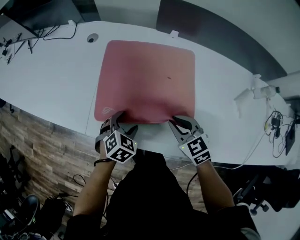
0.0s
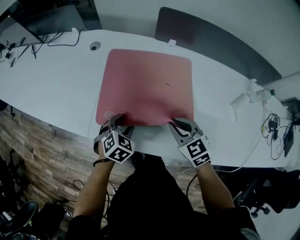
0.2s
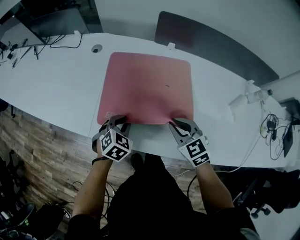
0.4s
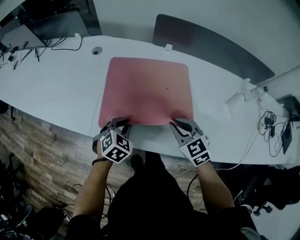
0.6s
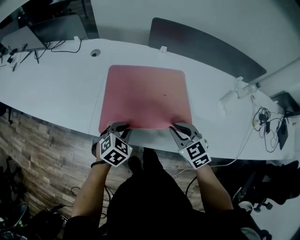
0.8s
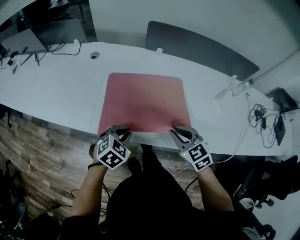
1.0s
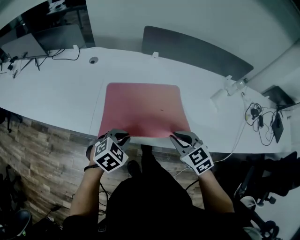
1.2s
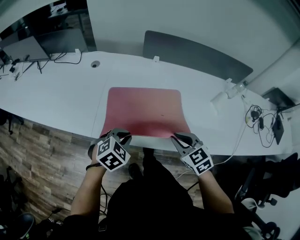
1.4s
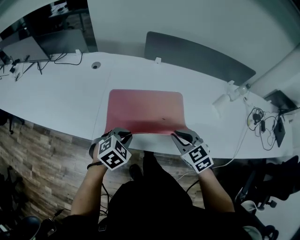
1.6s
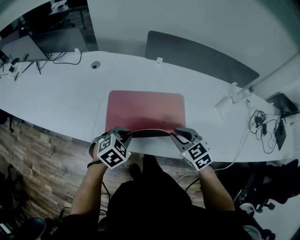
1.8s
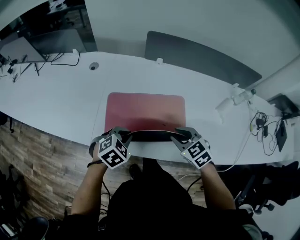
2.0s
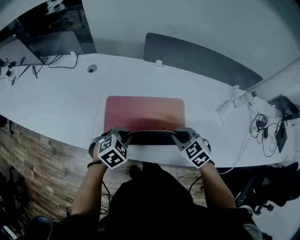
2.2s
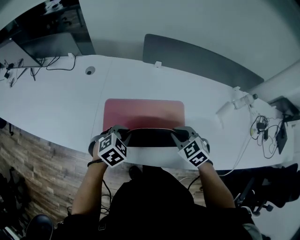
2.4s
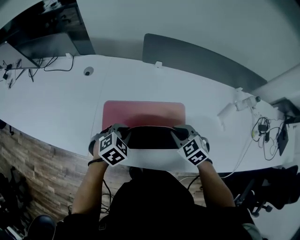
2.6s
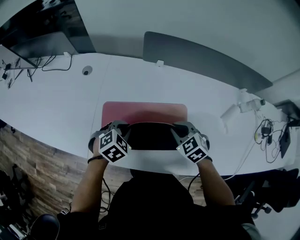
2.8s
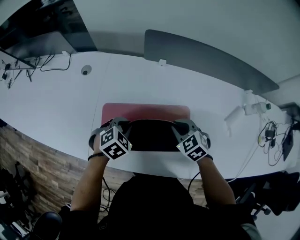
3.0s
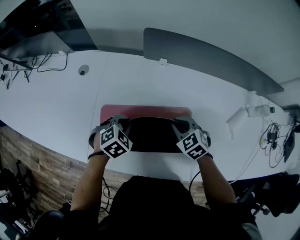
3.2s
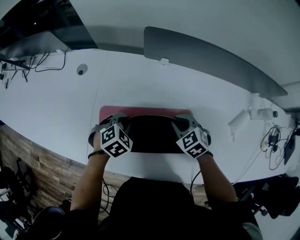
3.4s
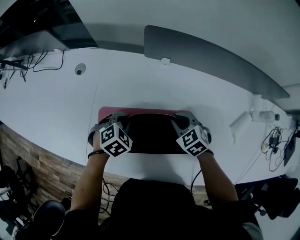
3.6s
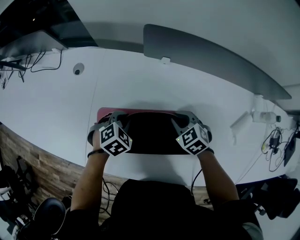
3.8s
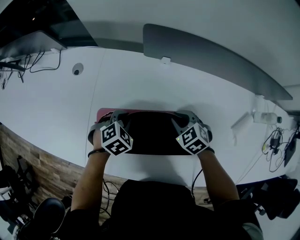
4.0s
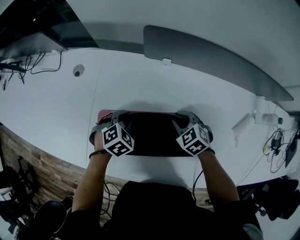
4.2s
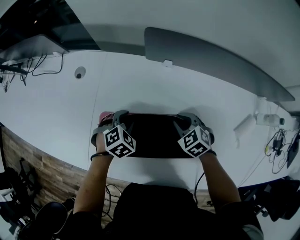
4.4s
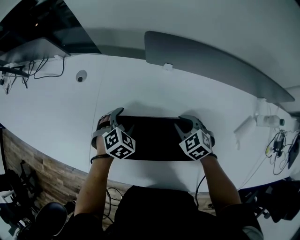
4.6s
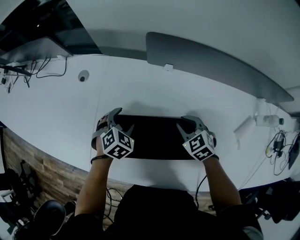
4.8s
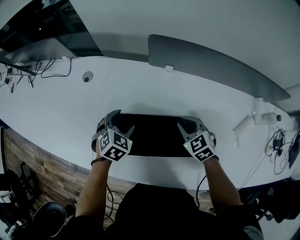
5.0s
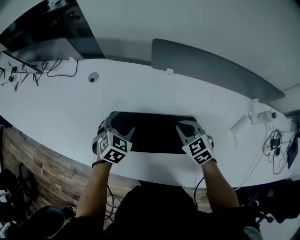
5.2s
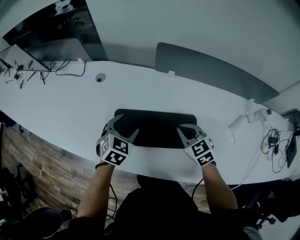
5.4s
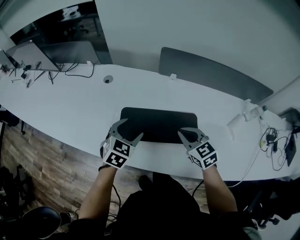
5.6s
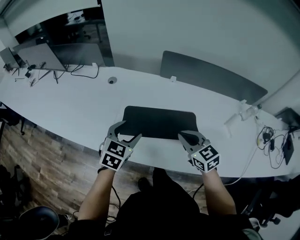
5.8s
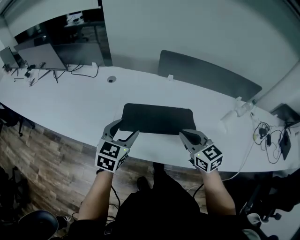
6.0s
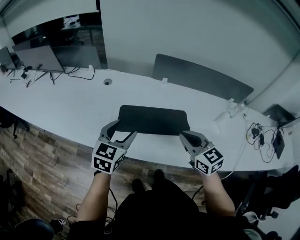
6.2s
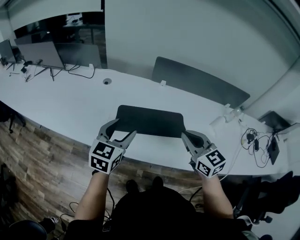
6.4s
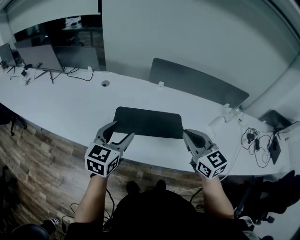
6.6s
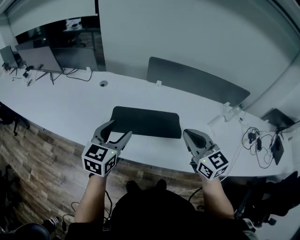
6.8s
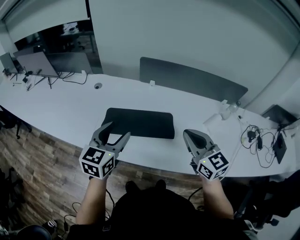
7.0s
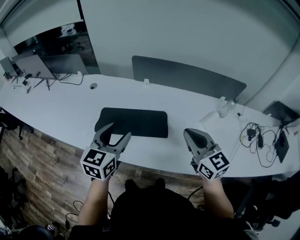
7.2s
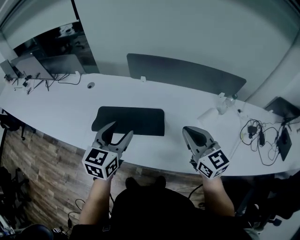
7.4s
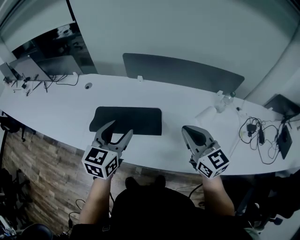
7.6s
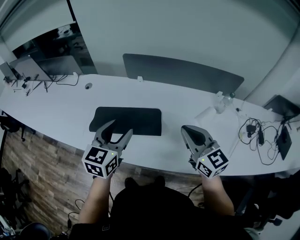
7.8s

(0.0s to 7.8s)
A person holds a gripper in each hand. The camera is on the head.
0.0s - 1.6s: Both grippers move upward and backward, some 15 cm. The left gripper closes its fingers.
1.6s - 3.2s: The left gripper heads forward, covering roughly 20 cm, while the right gripper goes roughly 25 cm forward and downward.
3.2s - 4.6s: Both grippers travel together forward, approximately 5 cm. The left gripper opens its fingers.
4.6s - 6.2s: Both grippers move upward and backward, about 35 cm. The left gripper tips its fingers upward by roughly 40 degrees, while the right gripper tilts its fingers approximately 30 degrees upward.
6.2s - 7.8s: The grippers both shift to the right by roughly 20 cm.

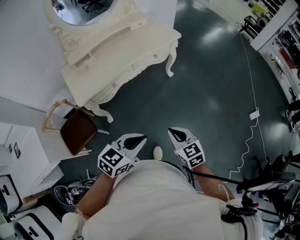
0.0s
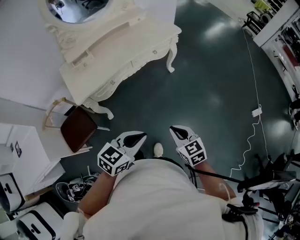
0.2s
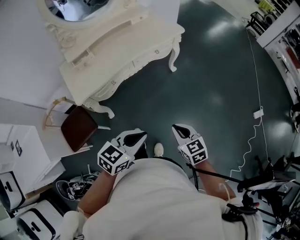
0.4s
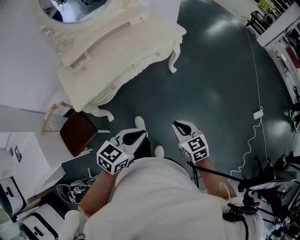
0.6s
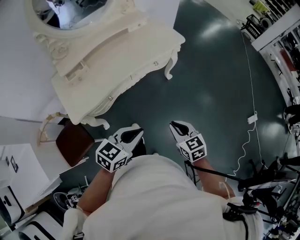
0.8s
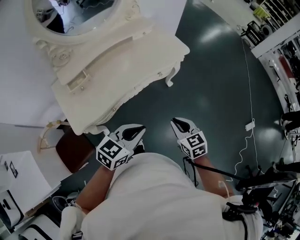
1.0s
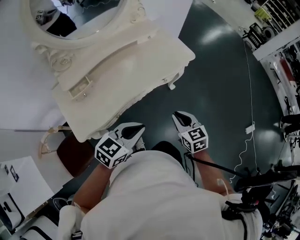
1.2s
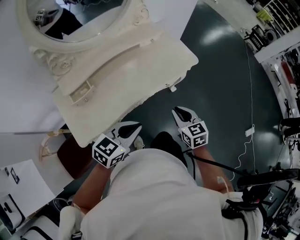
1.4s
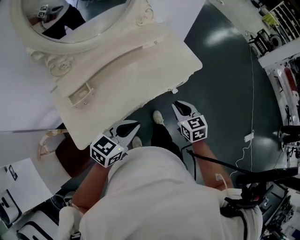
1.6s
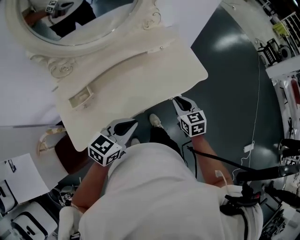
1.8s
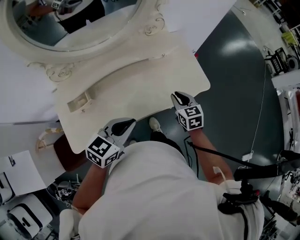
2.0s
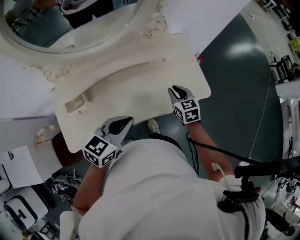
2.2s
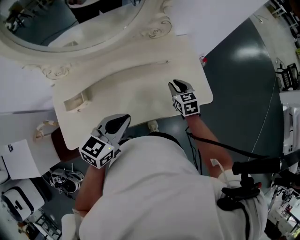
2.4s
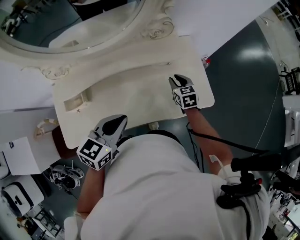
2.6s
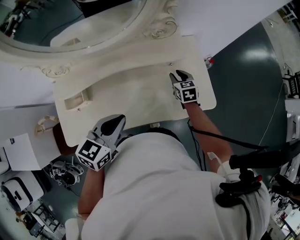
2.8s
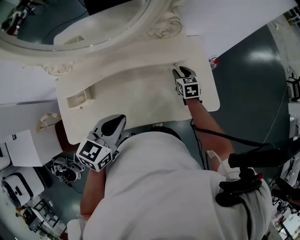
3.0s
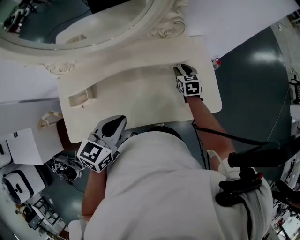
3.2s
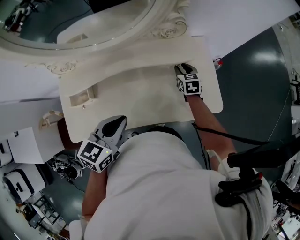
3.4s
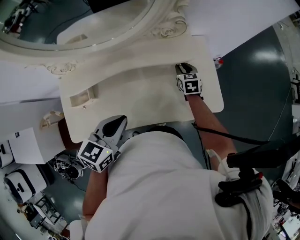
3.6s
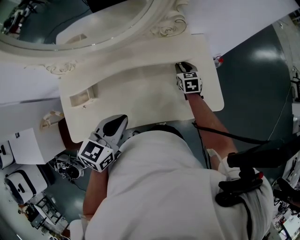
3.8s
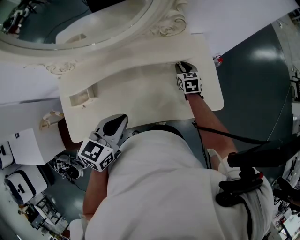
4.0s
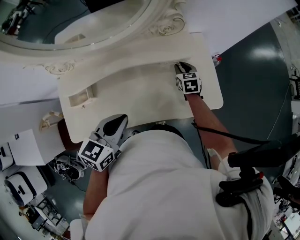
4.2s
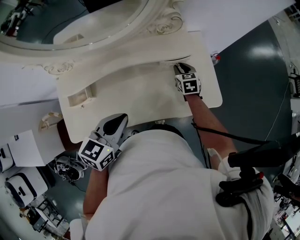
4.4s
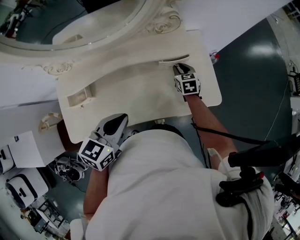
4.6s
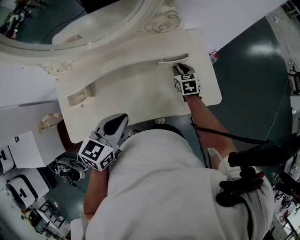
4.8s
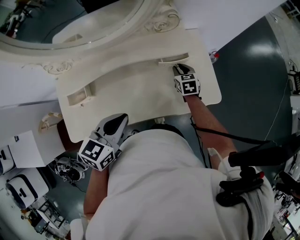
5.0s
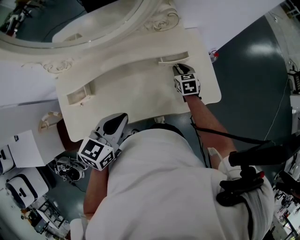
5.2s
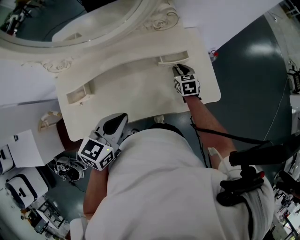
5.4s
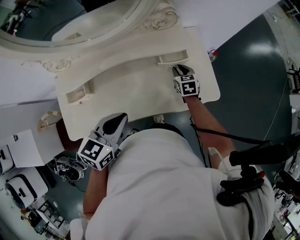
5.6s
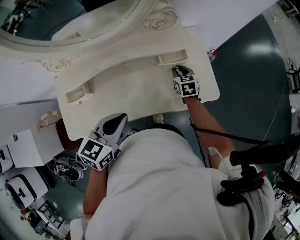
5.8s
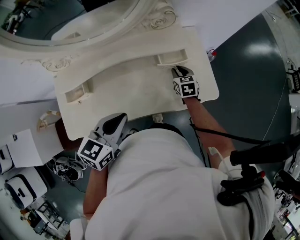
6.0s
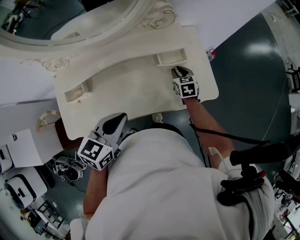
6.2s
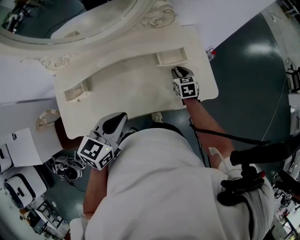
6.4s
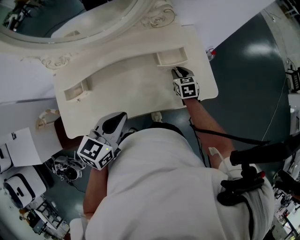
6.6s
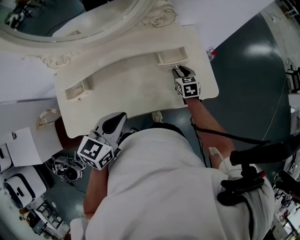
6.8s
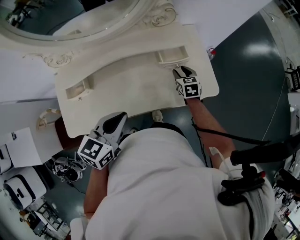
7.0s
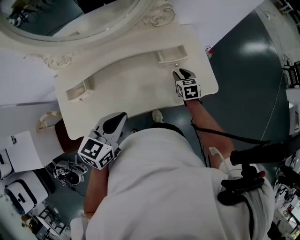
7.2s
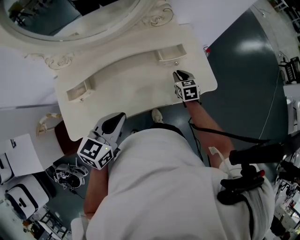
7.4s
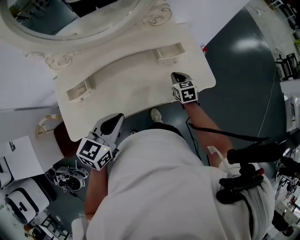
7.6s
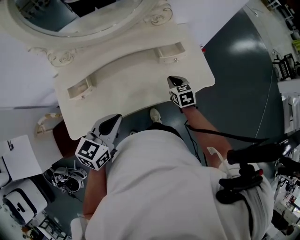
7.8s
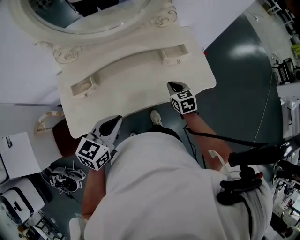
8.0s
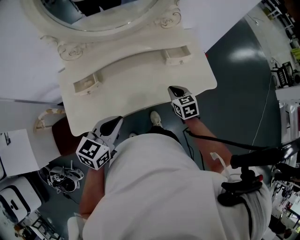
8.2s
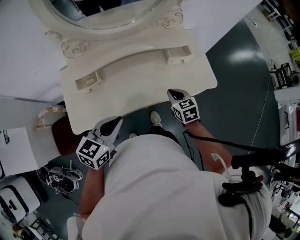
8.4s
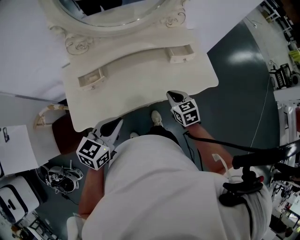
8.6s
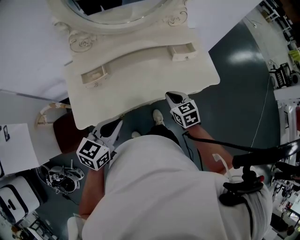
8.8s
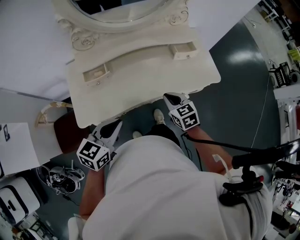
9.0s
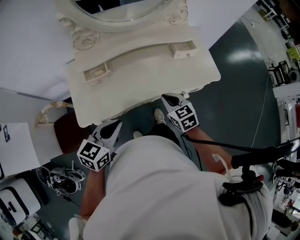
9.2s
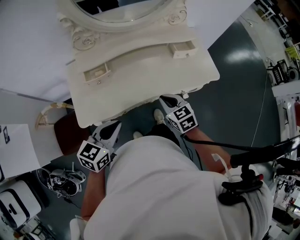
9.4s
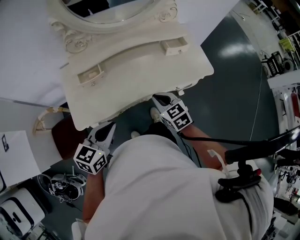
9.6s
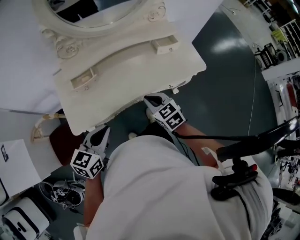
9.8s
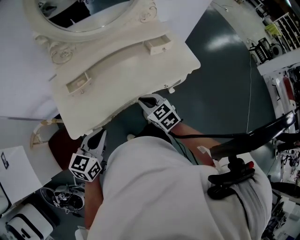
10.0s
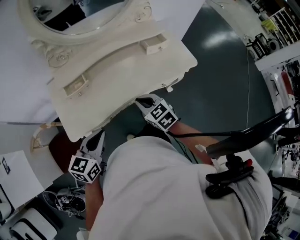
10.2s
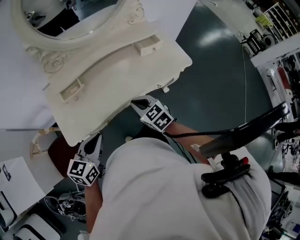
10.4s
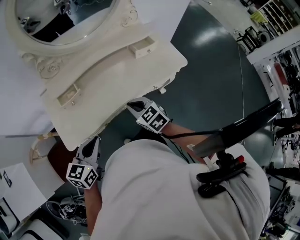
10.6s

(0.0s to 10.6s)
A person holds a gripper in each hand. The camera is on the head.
0.0s - 1.6s: Both grippers are carried forward, roughly 50 cm.
1.6s - 3.0s: The left gripper shifts some 20 cm forward, and rotates approximately 30 degrees; the right gripper goes approximately 40 cm forward, and opens up.
3.0s - 6.0s: The grippers move only a little.
6.0s - 7.6s: The two grippers go about 10 cm backward. The right gripper closes its fingers.
7.6s - 9.0s: Both grippers move backward and to the left, roughly 20 cm.
9.0s - 10.6s: The right gripper goes roughly 5 cm to the left.

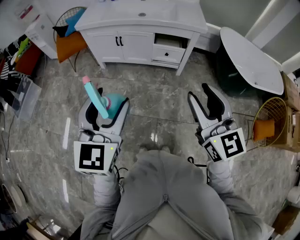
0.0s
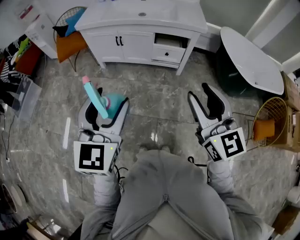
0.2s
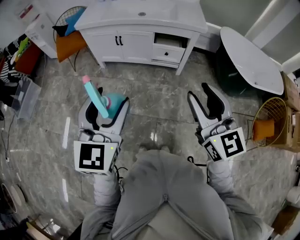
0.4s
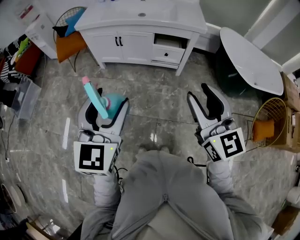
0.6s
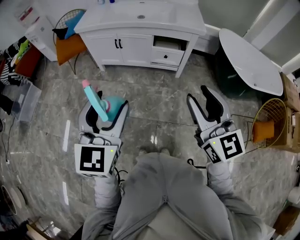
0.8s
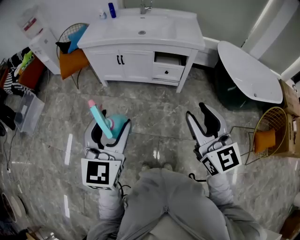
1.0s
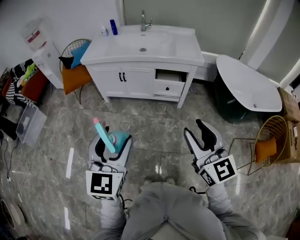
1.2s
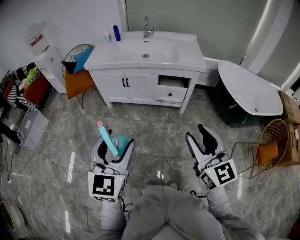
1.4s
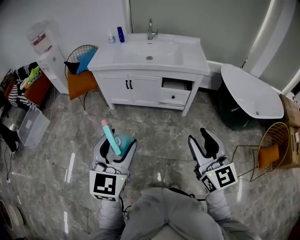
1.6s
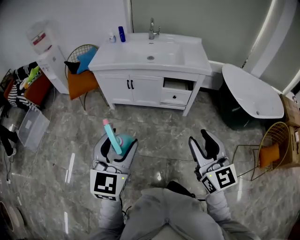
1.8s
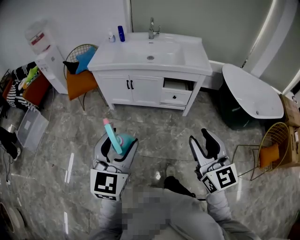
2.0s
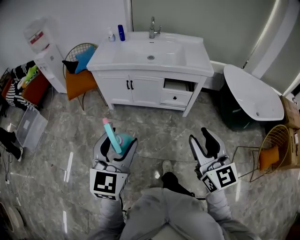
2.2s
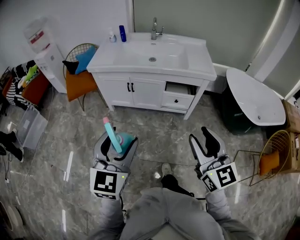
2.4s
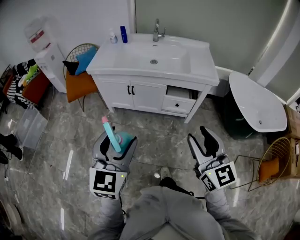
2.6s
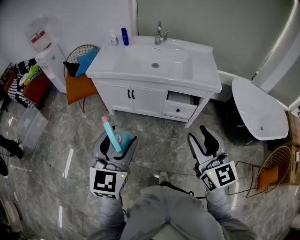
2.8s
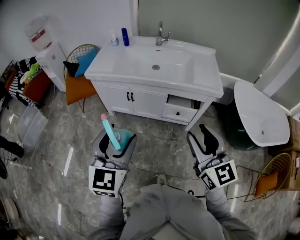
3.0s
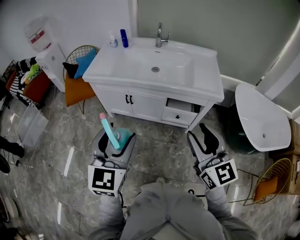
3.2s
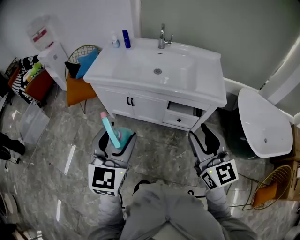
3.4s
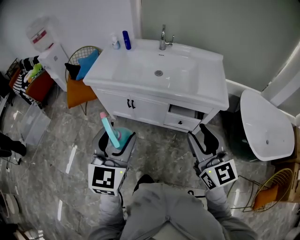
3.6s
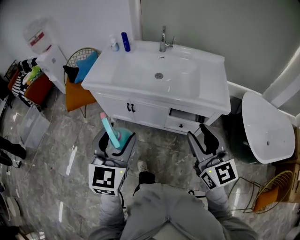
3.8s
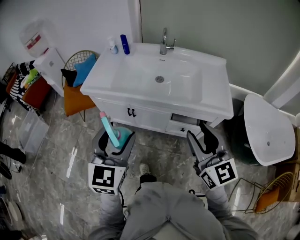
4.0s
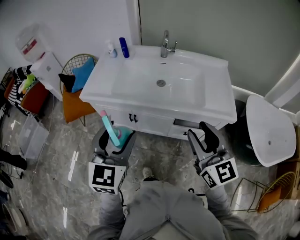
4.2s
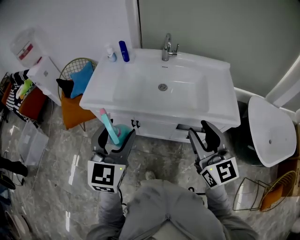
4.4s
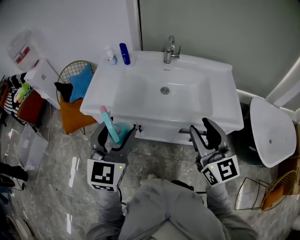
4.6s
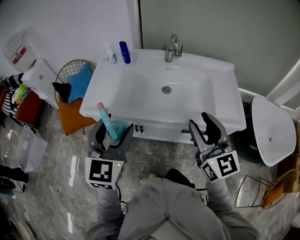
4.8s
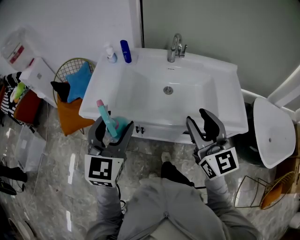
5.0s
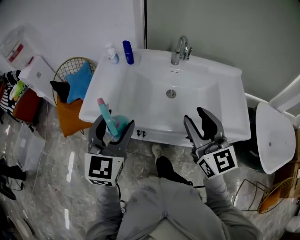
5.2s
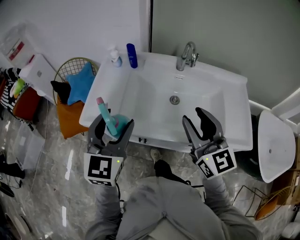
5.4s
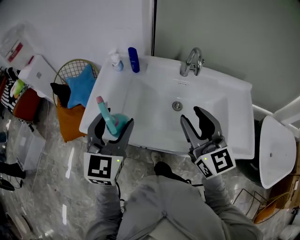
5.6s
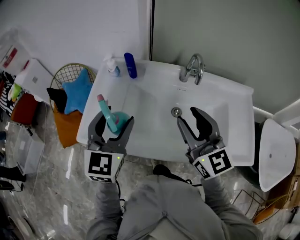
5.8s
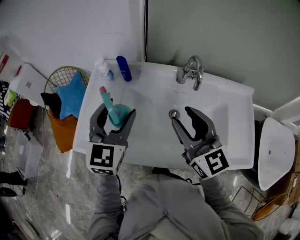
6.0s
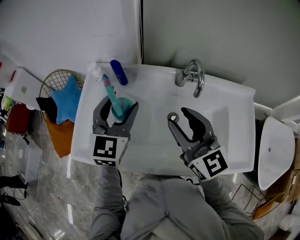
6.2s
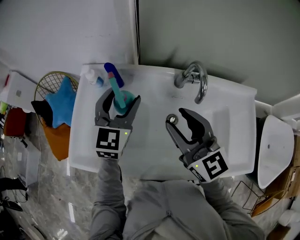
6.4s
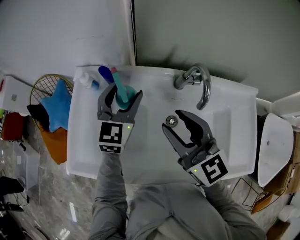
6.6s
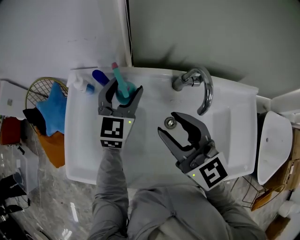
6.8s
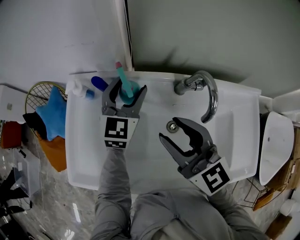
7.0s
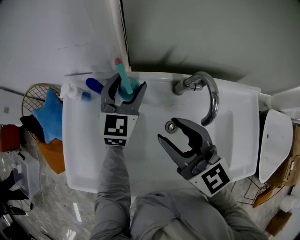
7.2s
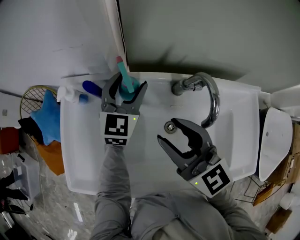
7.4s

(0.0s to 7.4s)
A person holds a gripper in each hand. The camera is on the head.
0.0s - 1.4s: There are only small adjustments of the grippers.
1.4s - 3.0s: The two grippers go approximately 20 cm forward.
3.0s - 4.4s: The two grippers go some 25 cm forward.
4.4s - 6.0s: The two grippers go roughly 35 cm forward.
6.0s - 7.4s: The left gripper shifts approximately 30 cm forward, to the right and downward. Meanwhile the right gripper is displaced forward and downward by roughly 15 cm.
